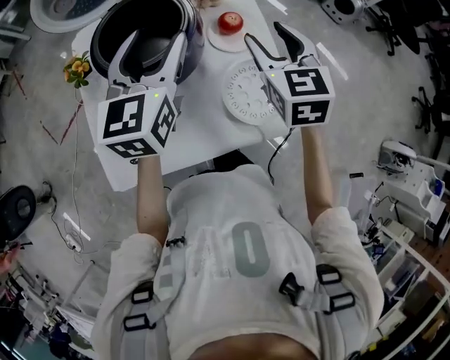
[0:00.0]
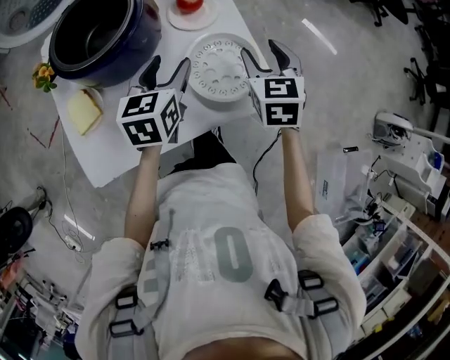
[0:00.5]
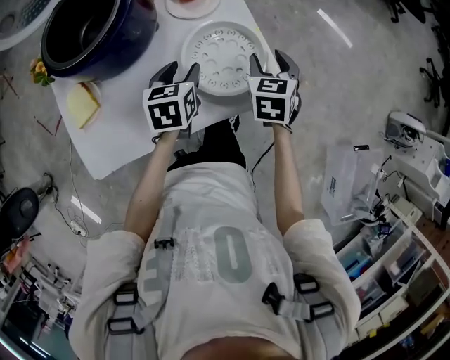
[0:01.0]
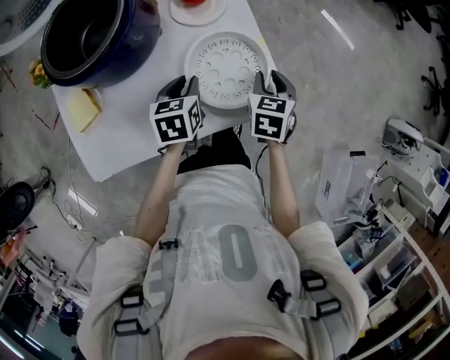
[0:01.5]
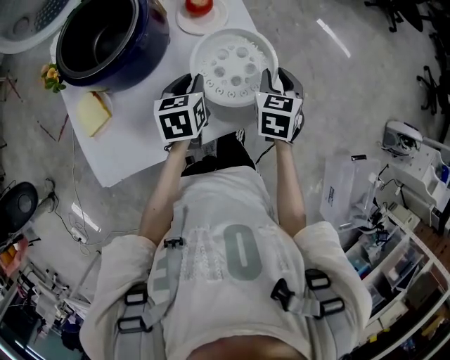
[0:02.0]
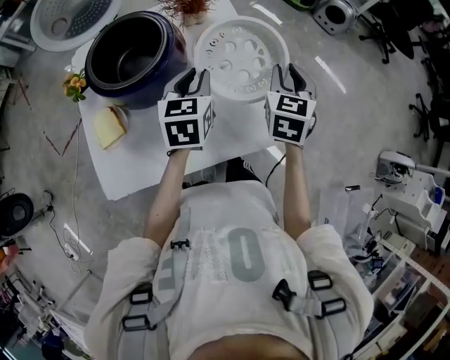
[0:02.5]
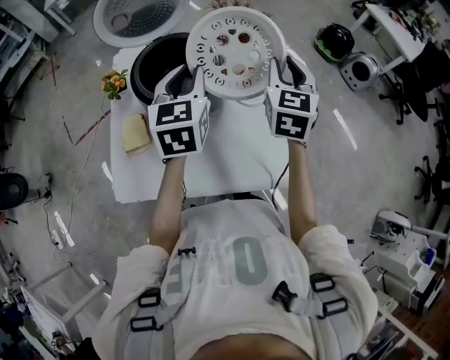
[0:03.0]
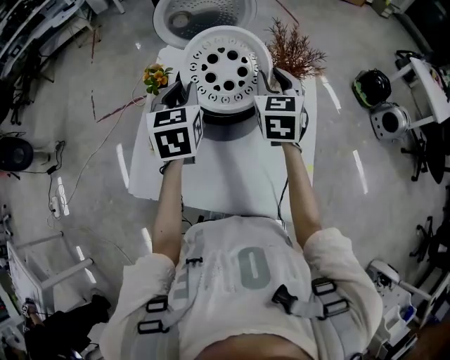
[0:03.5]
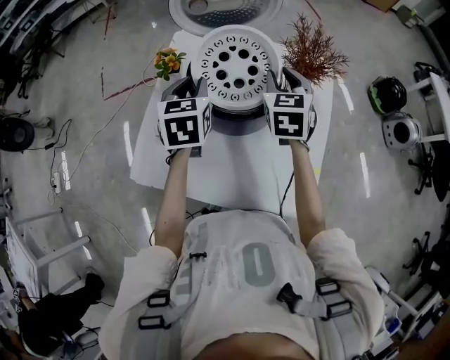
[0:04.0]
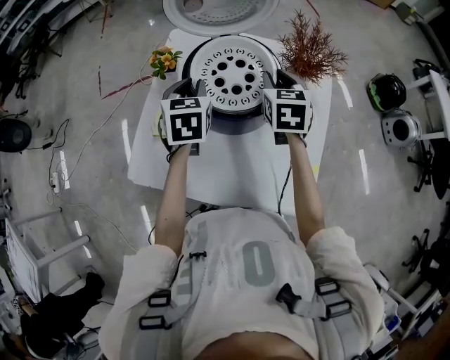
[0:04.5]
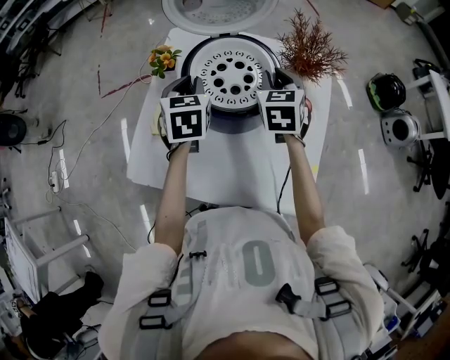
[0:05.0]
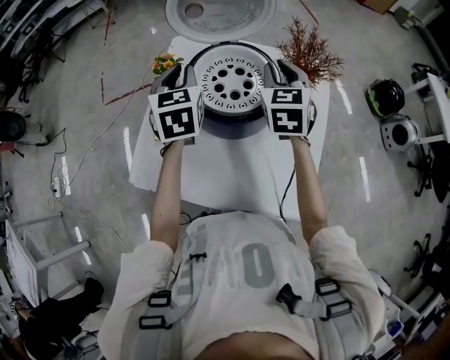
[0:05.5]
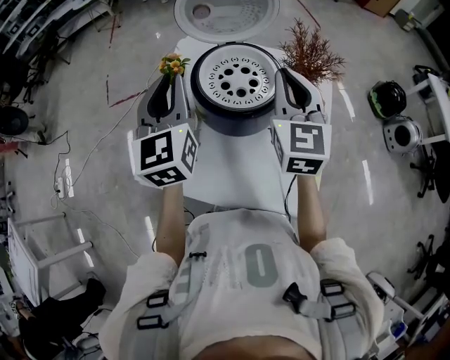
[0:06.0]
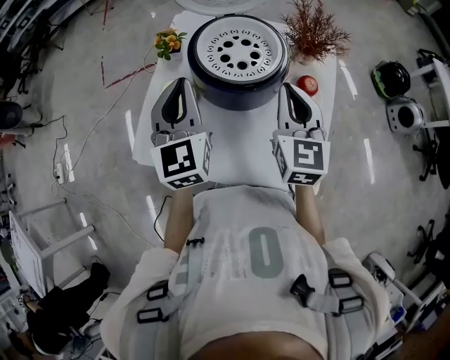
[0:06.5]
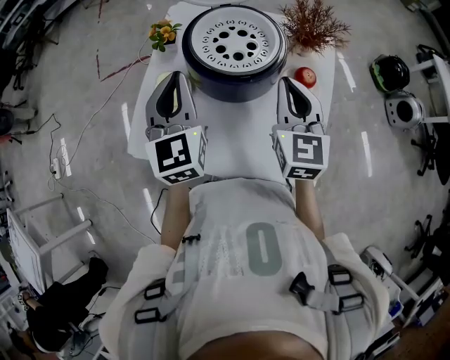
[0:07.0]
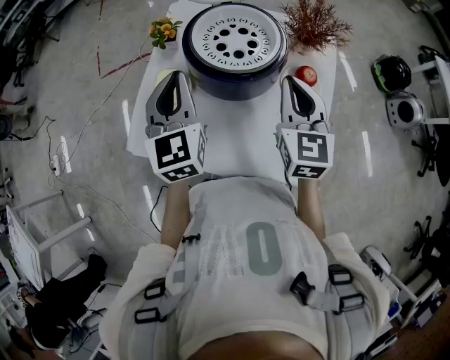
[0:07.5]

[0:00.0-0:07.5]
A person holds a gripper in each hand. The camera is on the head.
0:00.0 to 0:02.0: The two grippers go about 30 cm downward and to the right. The right gripper changes its angle by some 30 degrees, and closes its fingers. The left gripper angles its fingers downward, by some 30 degrees, and closes up.
0:02.0 to 0:04.0: The right gripper ends up roughly 40 cm from where it was, and swivels some 40 degrees. The left gripper shifts by approximately 35 cm, and swivels approximately 40 degrees.
0:04.0 to 0:05.5: The grippers make only small movements.
0:05.5 to 0:07.5: The grippers both shift backward by about 15 cm.

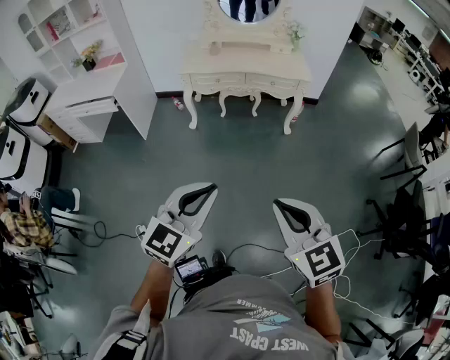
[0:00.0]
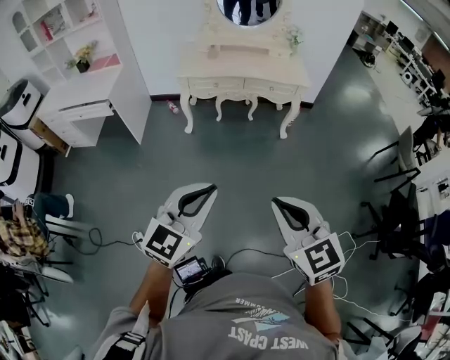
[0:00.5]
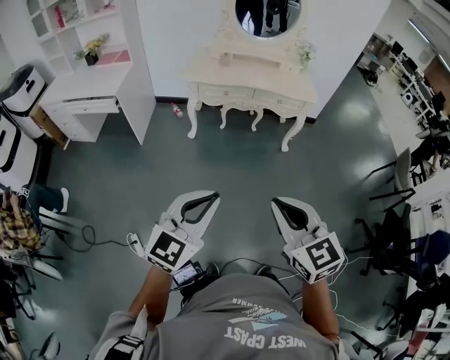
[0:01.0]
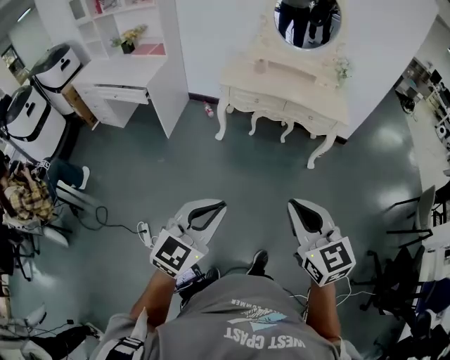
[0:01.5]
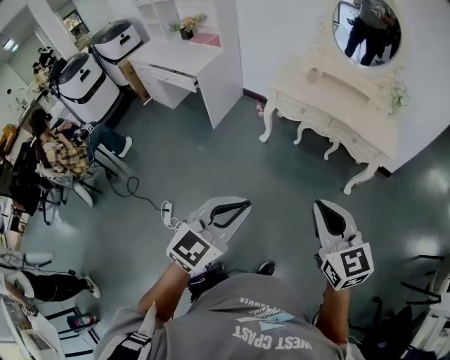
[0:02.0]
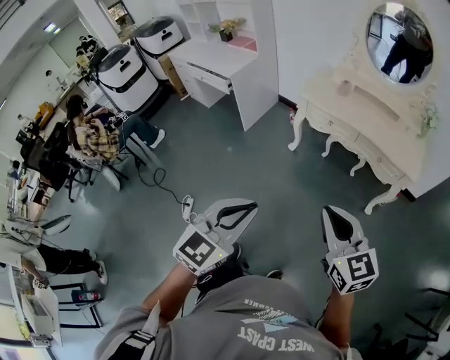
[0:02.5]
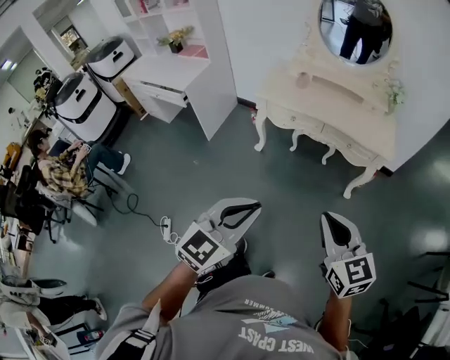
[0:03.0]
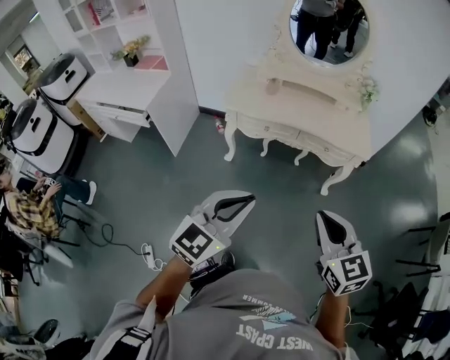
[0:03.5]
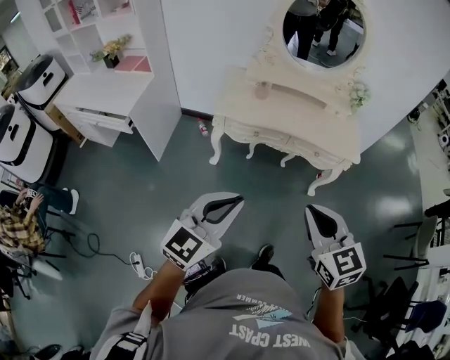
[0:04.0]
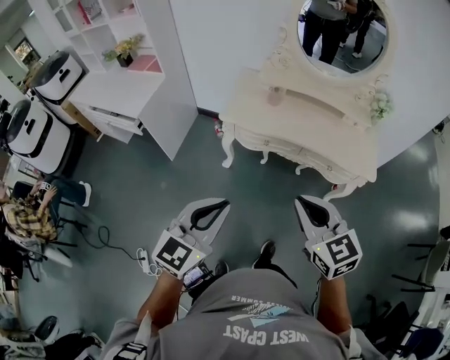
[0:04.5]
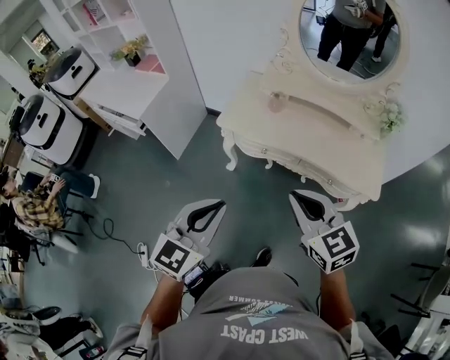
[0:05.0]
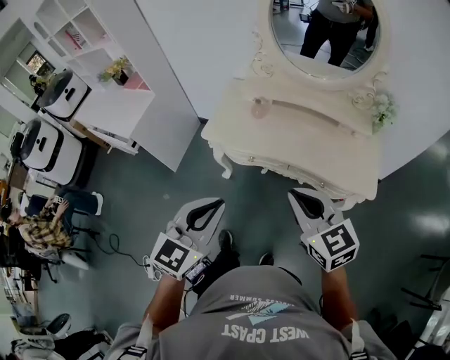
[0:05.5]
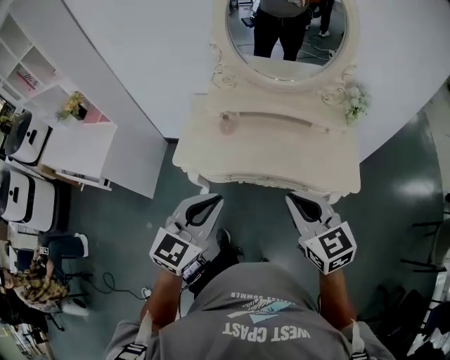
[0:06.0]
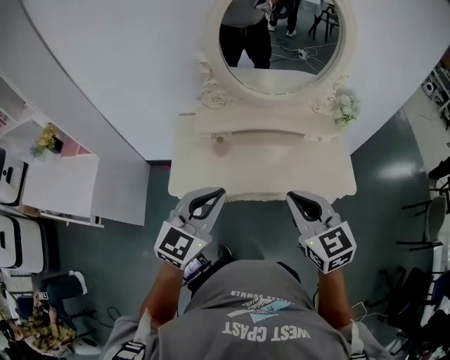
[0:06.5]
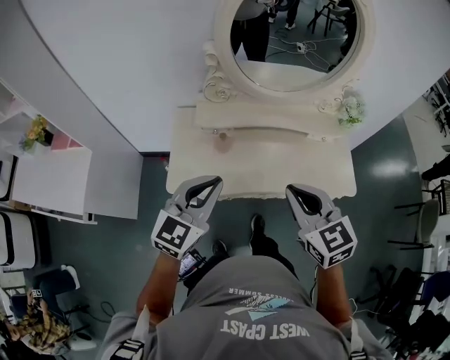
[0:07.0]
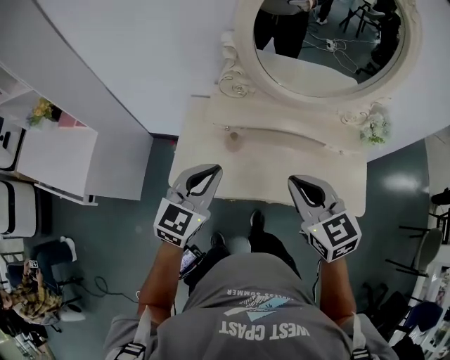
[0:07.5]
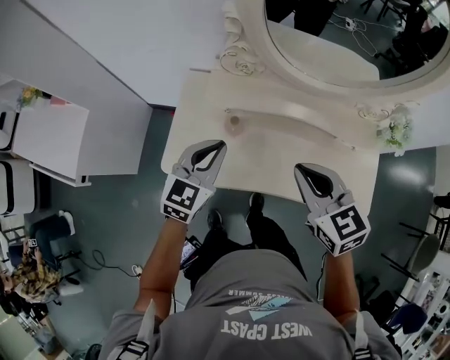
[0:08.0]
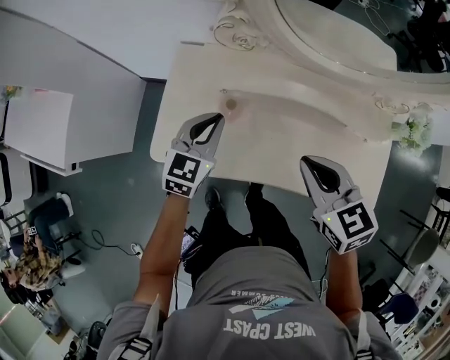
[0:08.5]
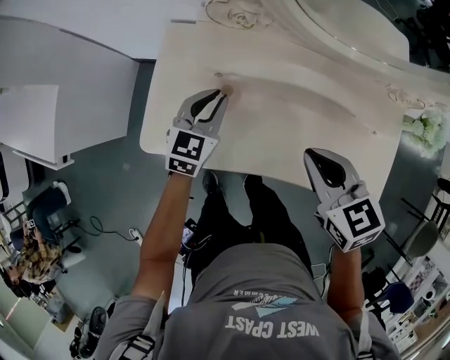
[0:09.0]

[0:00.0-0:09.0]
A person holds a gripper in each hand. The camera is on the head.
0:00.0 to 0:02.0: The right gripper heads forward, covering about 25 cm, and changes its angle by approximately 20 degrees; the left gripper moves forward, about 15 cm, and turns by about 20 degrees.
0:02.0 to 0:04.5: The right gripper shifts by some 35 cm. The left gripper moves approximately 35 cm.
0:04.5 to 0:07.0: The left gripper ends up roughly 50 cm from where it was, while the right gripper changes place by about 40 cm.
0:07.0 to 0:09.0: The left gripper heads downward and forward, covering about 40 cm, and rotates approximately 30 degrees, while the right gripper is displaced forward and downward by roughly 30 cm, and swivels roughly 30 degrees.

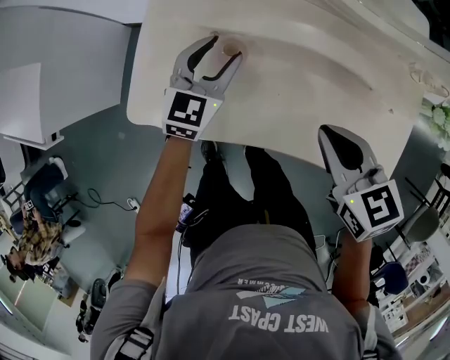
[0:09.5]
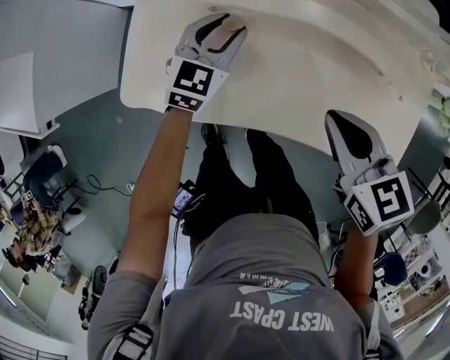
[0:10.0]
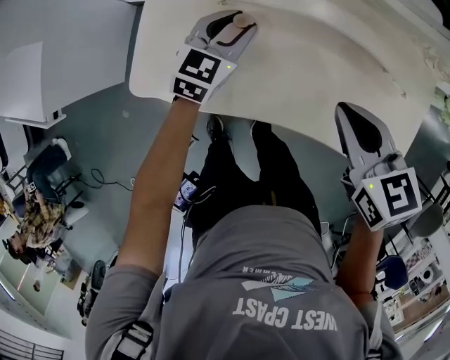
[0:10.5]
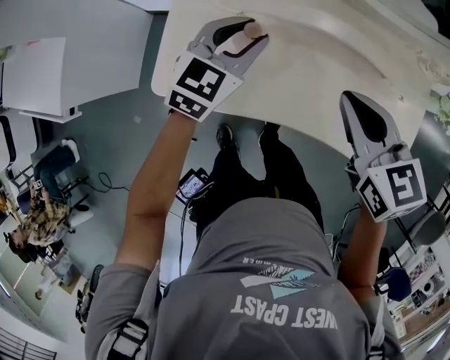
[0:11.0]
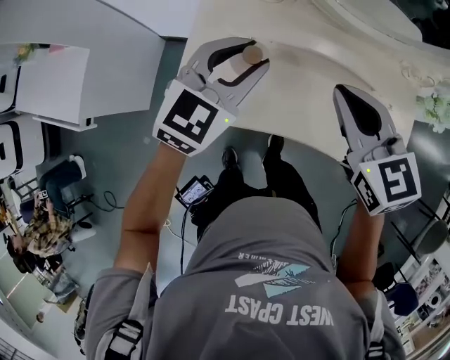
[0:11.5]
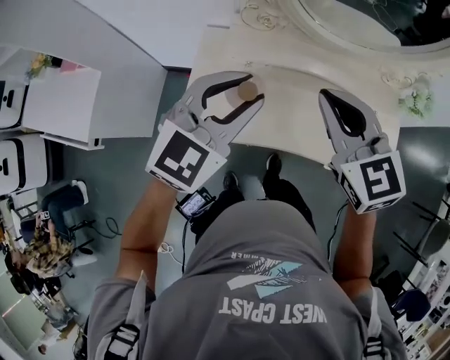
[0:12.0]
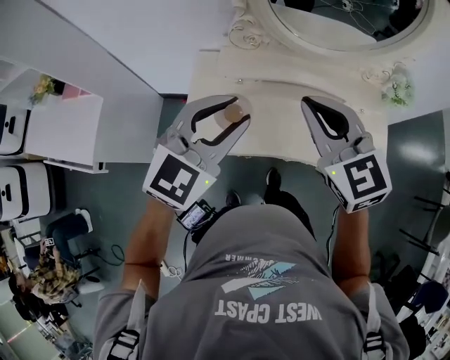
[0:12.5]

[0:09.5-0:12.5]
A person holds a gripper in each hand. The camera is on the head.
0:09.5 to 0:11.0: Both grippers move upward, about 10 cm.
0:11.0 to 0:12.5: The right gripper is displaced upward by roughly 20 cm, and swivels approximately 30 degrees. Meanwhile the left gripper shifts approximately 30 cm upward and backward, and rotates about 20 degrees.

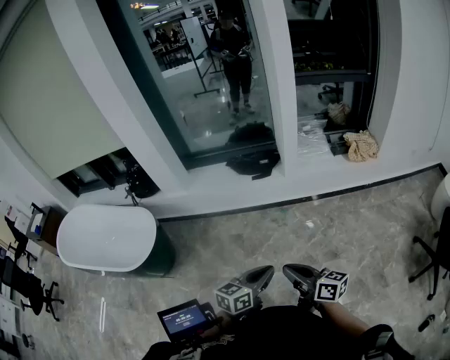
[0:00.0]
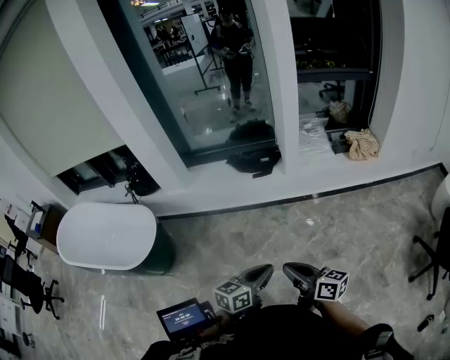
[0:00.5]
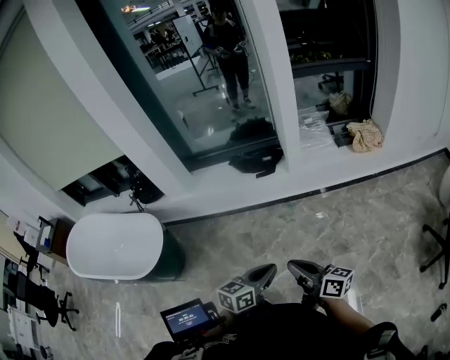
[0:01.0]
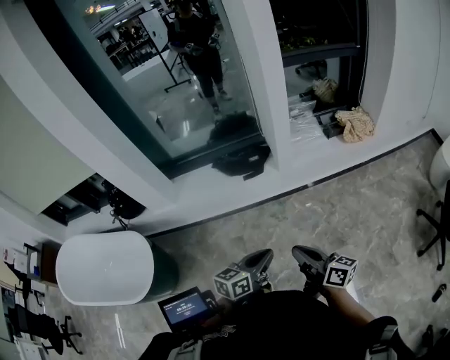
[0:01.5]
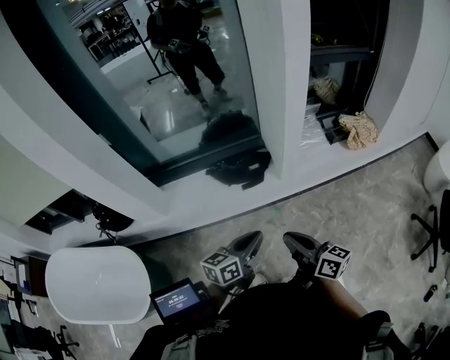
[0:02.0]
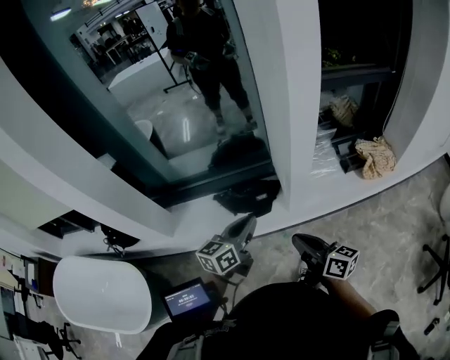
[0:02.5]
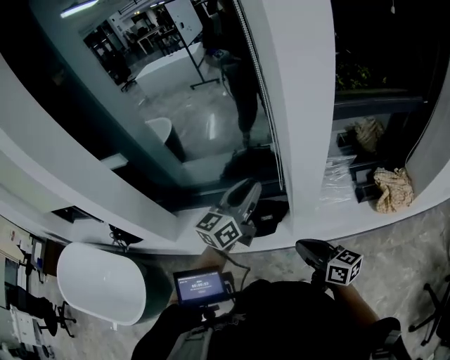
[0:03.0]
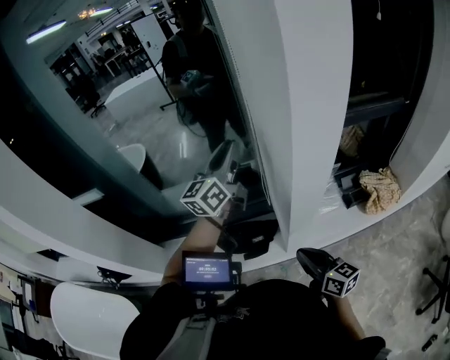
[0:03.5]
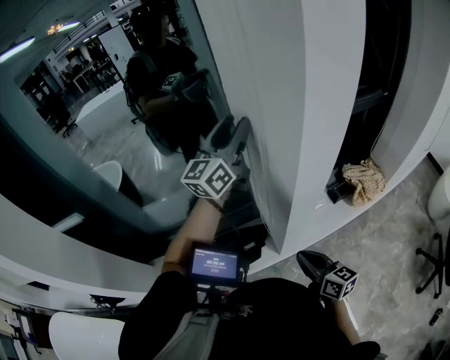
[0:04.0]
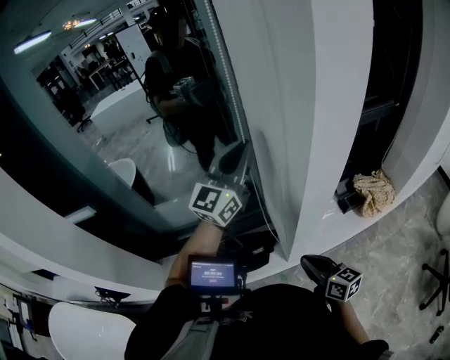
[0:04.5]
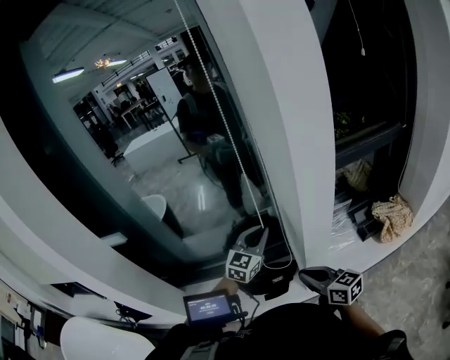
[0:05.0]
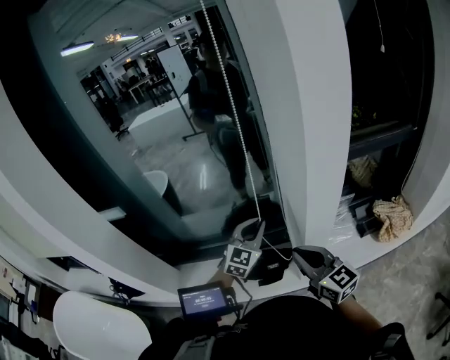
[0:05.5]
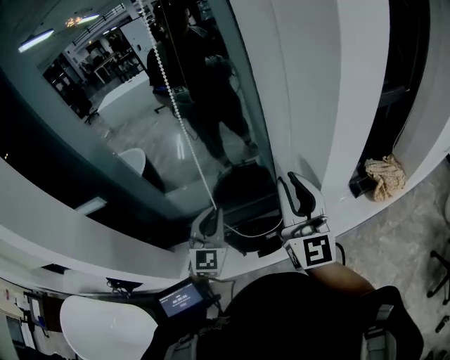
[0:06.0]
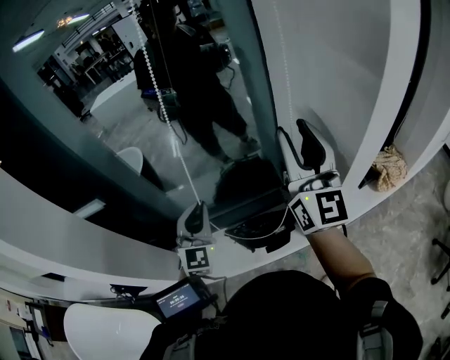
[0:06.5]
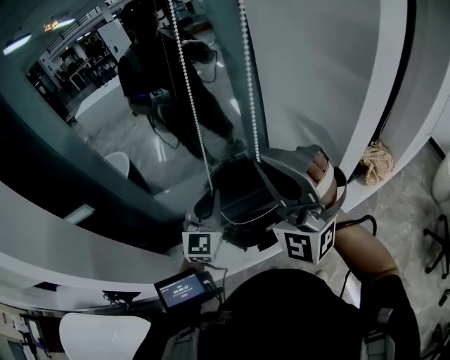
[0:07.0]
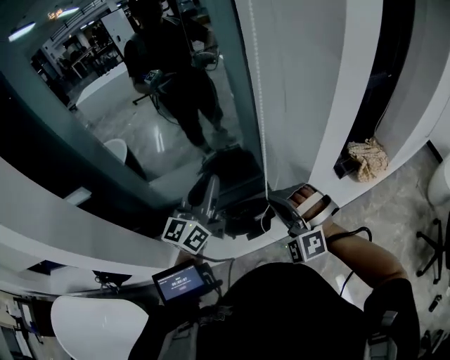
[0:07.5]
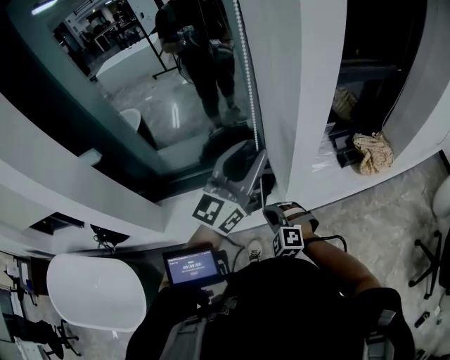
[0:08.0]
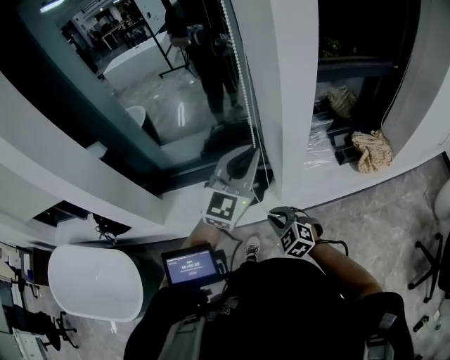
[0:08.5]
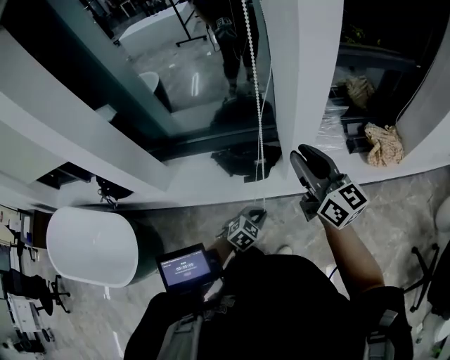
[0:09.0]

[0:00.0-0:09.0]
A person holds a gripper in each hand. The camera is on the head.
0:00.0 to 0:02.0: Both grippers travel together forward, about 35 cm.
0:02.0 to 0:04.5: The right gripper travels forward by roughly 30 cm. The left gripper goes some 60 cm forward and upward, tips its fingers upward by roughly 30 degrees, and opens, then closes again.
0:04.5 to 0:07.0: The left gripper shifts roughly 25 cm to the left and downward, and swivels some 30 degrees, while the right gripper goes roughly 40 cm upward and to the left, twists roughly 100 degrees counterclockwise, seen from behind, and opens, then closes again.
0:07.0 to 0:09.0: The right gripper travels downward, to the right and backward by approximately 25 cm, twists approximately 100 degrees clockwise, seen from behind, and opens up. The left gripper heads downward, backward and to the right, covering some 50 cm, angles its fingers downward, by about 50 degrees, and opens, then closes again.
